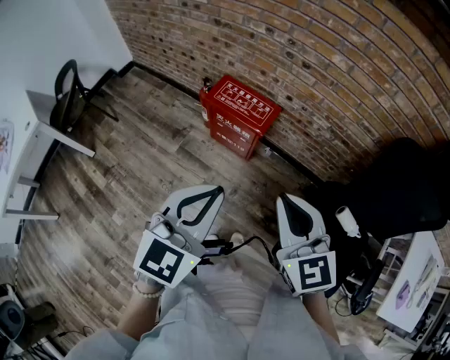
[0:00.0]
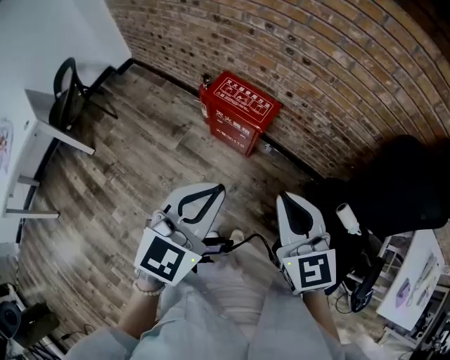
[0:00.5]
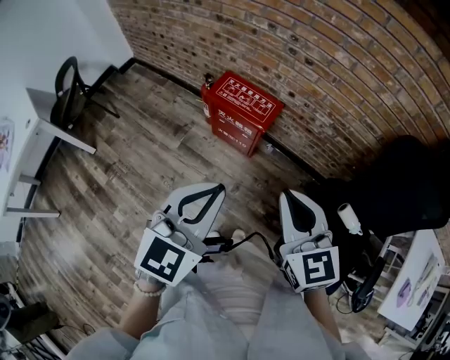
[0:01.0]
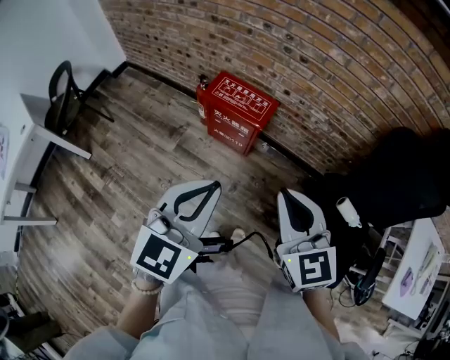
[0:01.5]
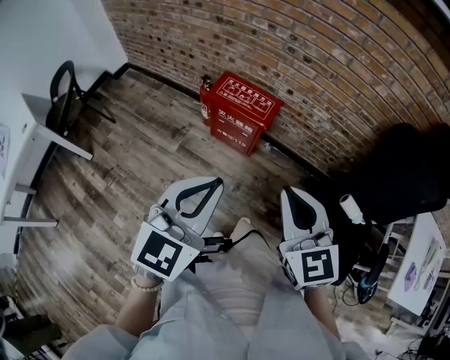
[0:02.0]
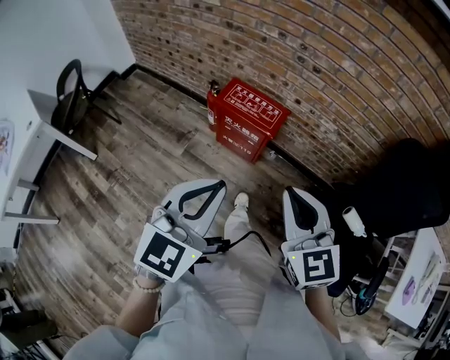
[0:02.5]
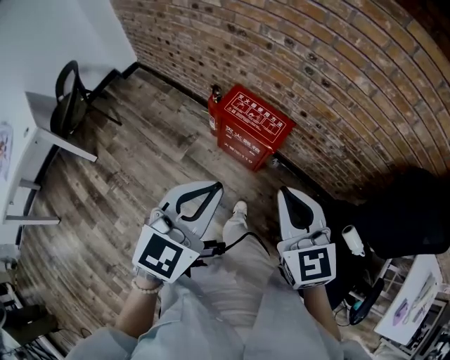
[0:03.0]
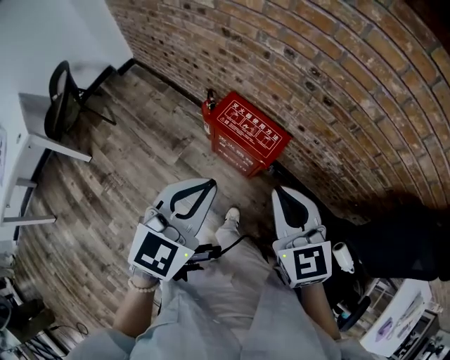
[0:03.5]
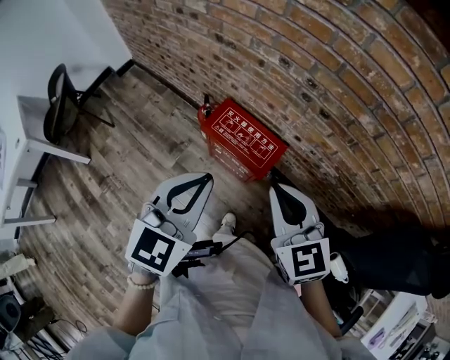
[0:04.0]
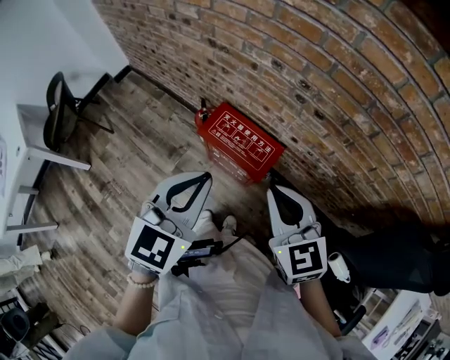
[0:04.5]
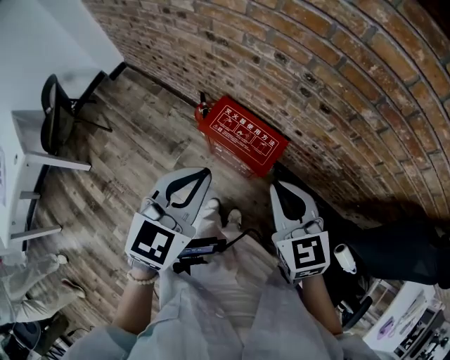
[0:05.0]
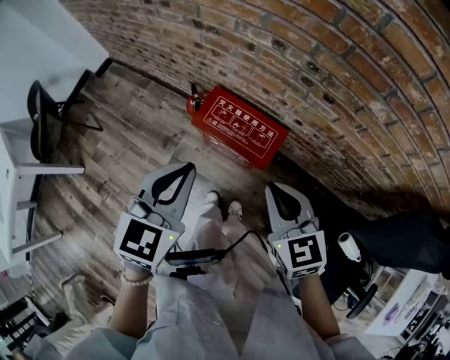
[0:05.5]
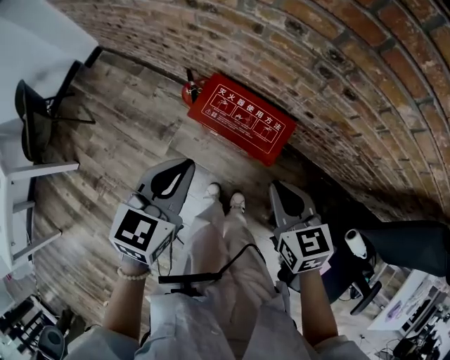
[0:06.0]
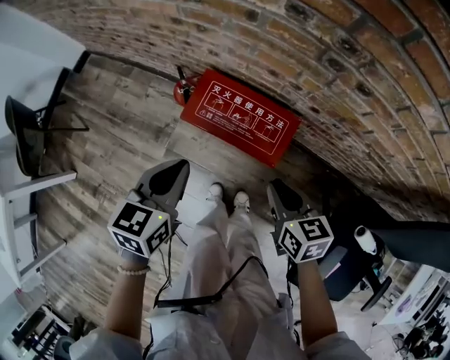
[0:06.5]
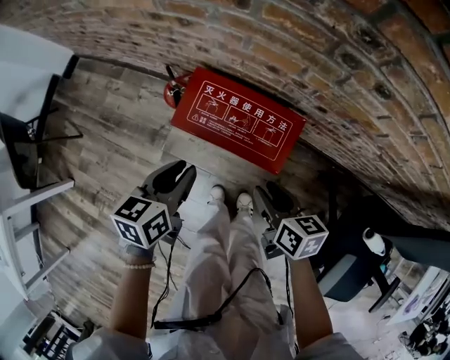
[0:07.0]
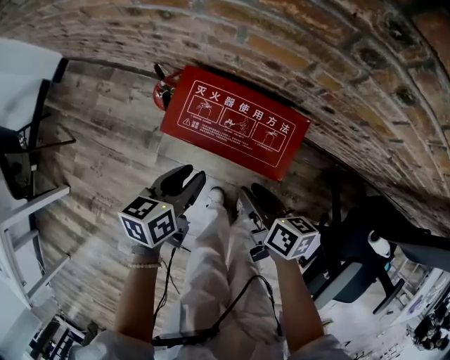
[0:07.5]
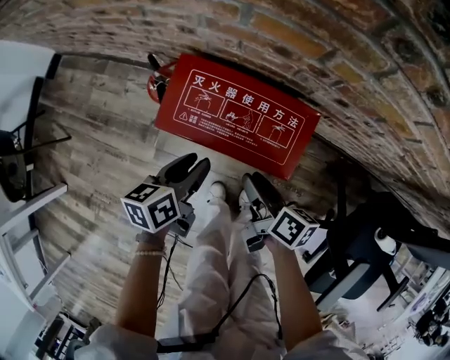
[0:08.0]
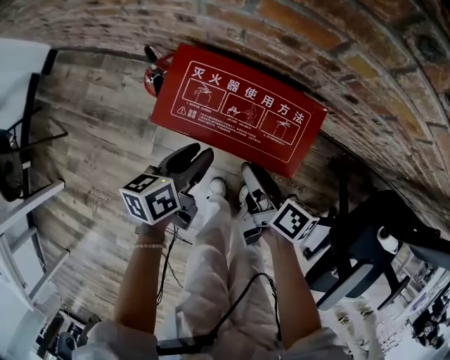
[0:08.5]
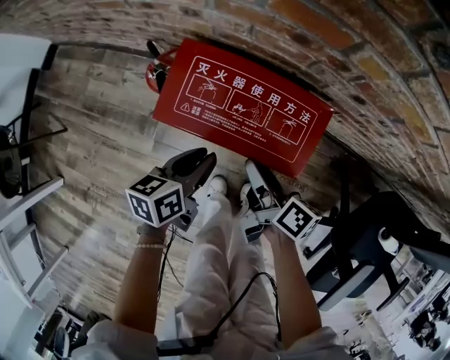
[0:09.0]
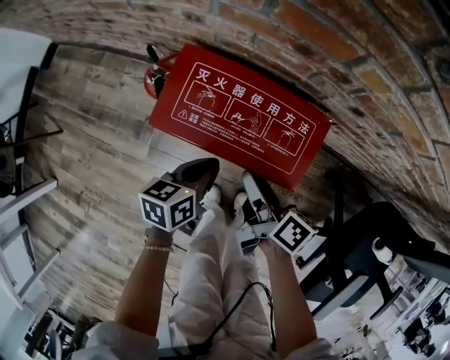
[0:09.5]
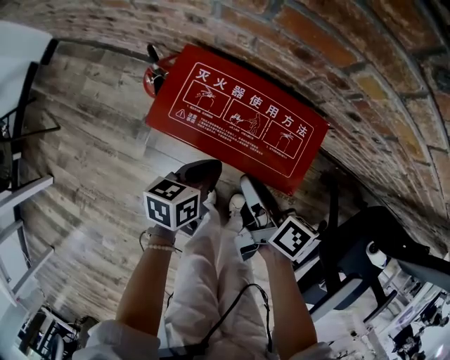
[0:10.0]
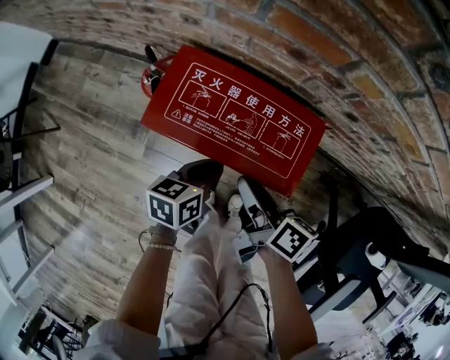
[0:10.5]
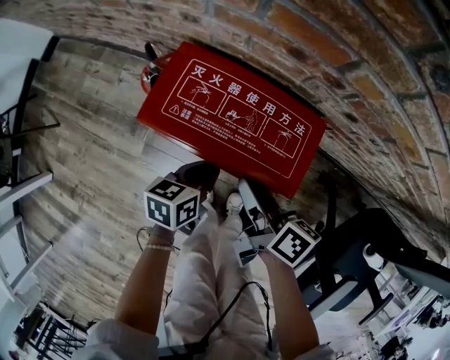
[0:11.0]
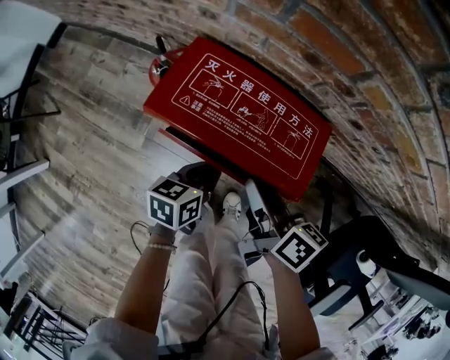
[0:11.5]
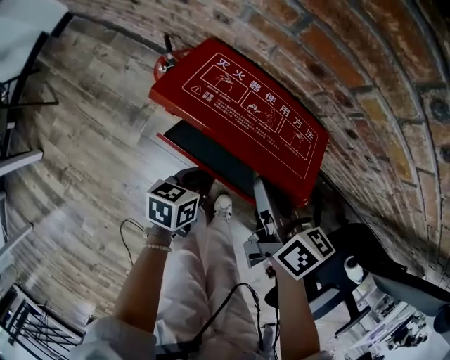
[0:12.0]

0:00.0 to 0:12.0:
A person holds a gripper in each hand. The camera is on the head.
0:00.0 to 0:02.0: The left gripper ends up approximately 5 cm from where it was.
0:02.0 to 0:04.0: The two grippers go approximately 30 cm forward.
0:04.0 to 0:06.0: The right gripper travels downward by about 15 cm, and swivels approximately 30 degrees, while the left gripper travels downward and forward by roughly 15 cm.
0:06.0 to 0:08.0: Both grippers travel together downward, approximately 30 cm. The left gripper changes its angle by approximately 40 degrees, and opens its fingers, while the right gripper rolls clockwise, seen from behind, by roughly 60 degrees, and opens its fingers.
0:08.0 to 0:10.0: The left gripper shifts about 5 cm downward, and closes its fingers.
0:10.0 to 0:12.0: The right gripper moves upward, about 5 cm, turns by some 20 degrees, and closes its fingers, while the left gripper goes about 5 cm backward.

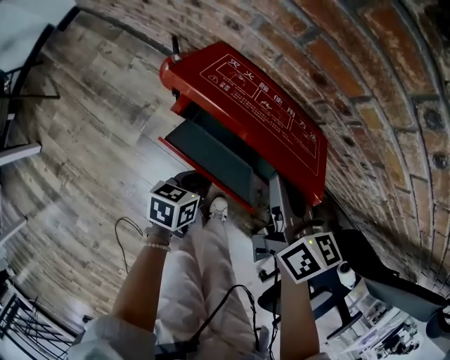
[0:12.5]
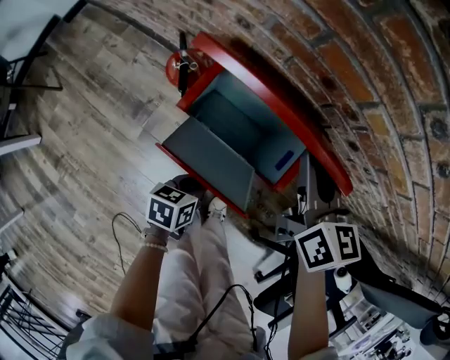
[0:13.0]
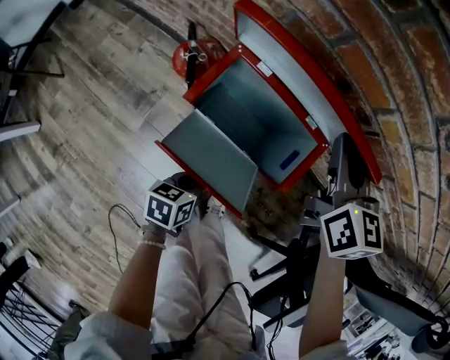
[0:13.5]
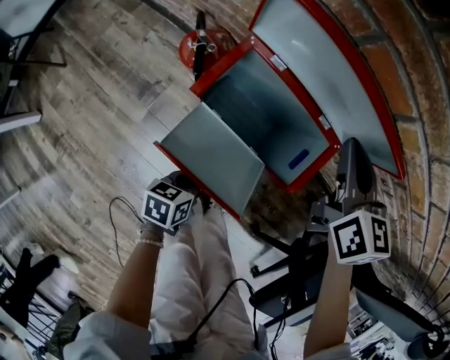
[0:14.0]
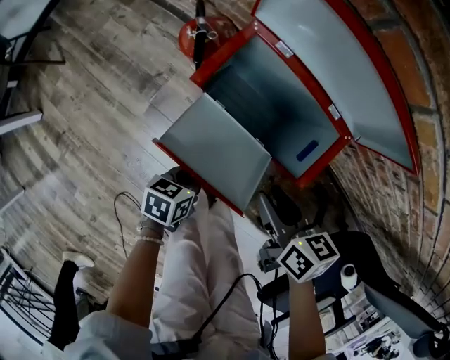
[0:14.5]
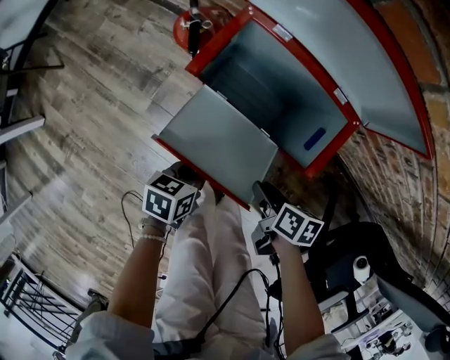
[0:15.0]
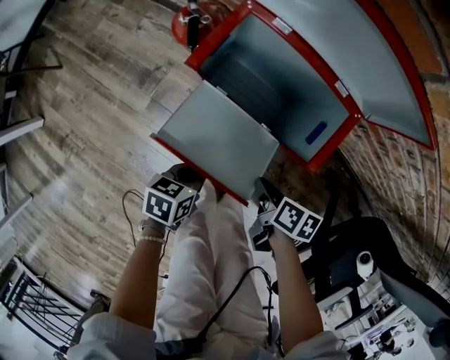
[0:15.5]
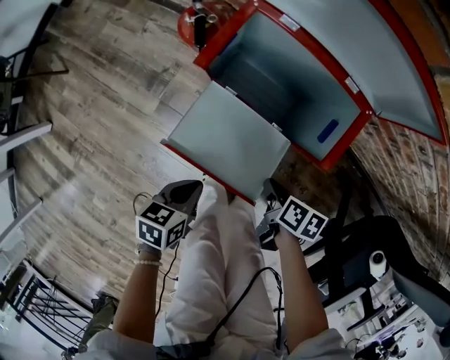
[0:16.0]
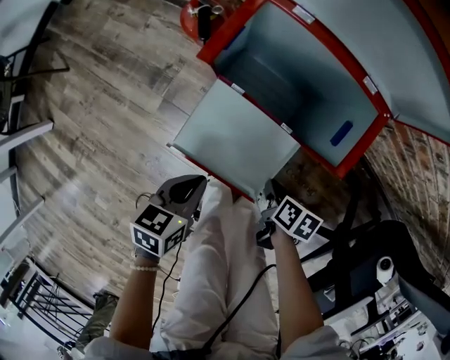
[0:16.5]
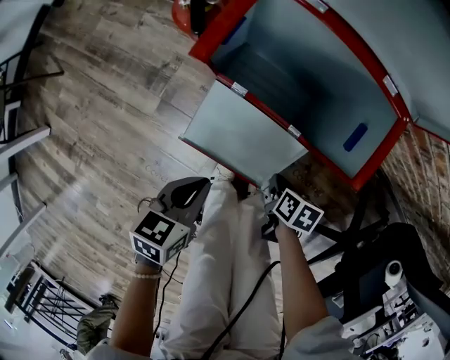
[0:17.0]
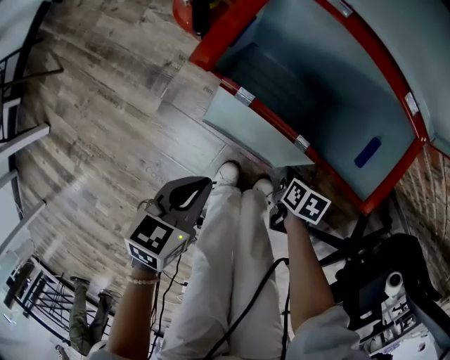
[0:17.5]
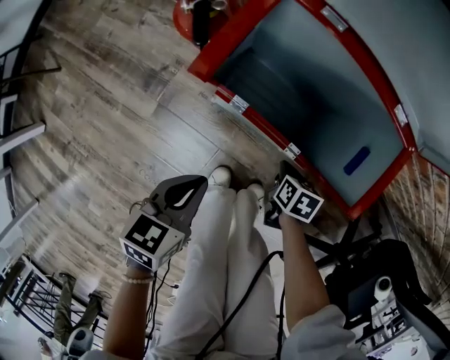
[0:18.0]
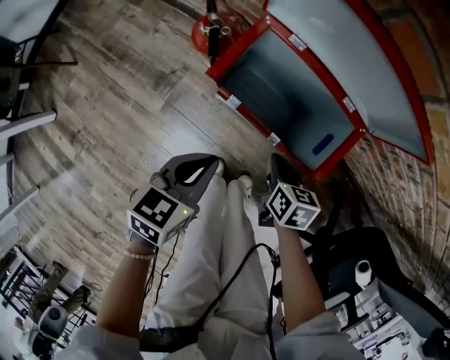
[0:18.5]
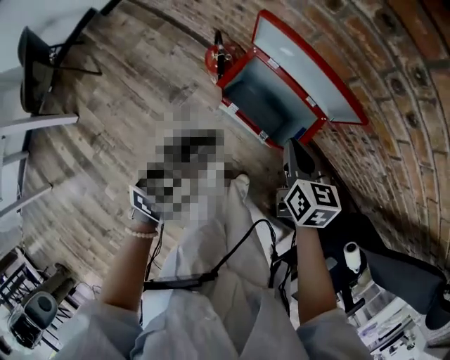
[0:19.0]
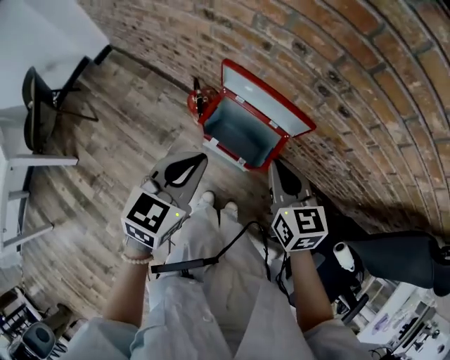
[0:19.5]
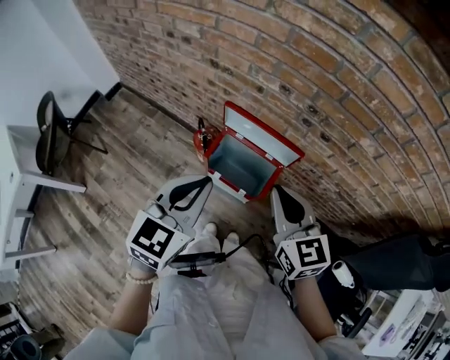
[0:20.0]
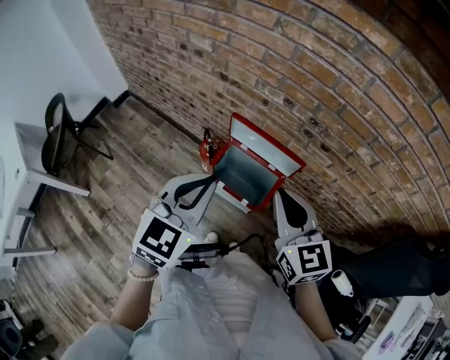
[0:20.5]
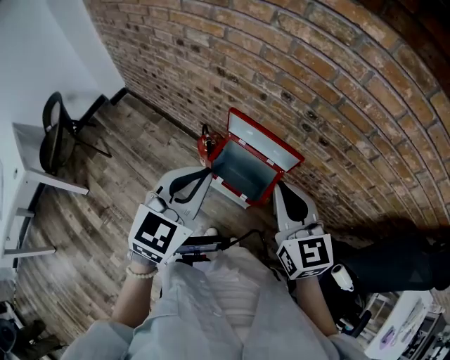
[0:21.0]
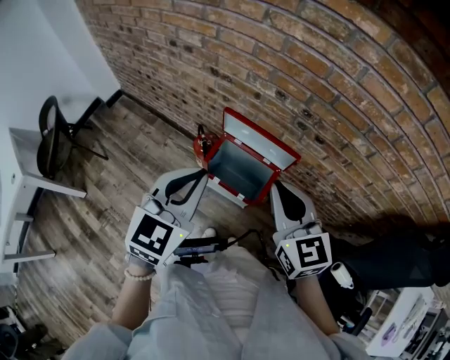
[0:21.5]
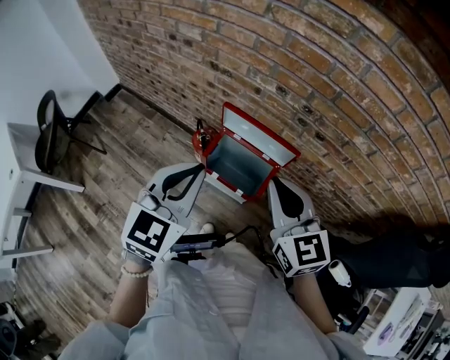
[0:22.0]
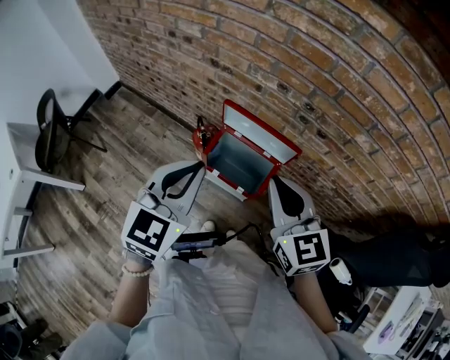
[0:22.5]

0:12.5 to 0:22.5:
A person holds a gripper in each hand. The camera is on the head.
0:12.5 to 0:14.5: The left gripper is displaced backward and downward by some 10 cm. The right gripper shifts some 15 cm downward and backward, swivels roughly 30 degrees, and opens its fingers.
0:14.5 to 0:16.5: The left gripper shifts by roughly 5 cm. The right gripper is displaced downward and backward by approximately 20 cm, swivels approximately 40 degrees, and closes its fingers.
0:16.5 to 0:18.5: The right gripper moves forward and upward, some 15 cm, and rotates approximately 30 degrees; the left gripper goes some 15 cm upward and forward.
0:18.5 to 0:20.5: The two grippers go approximately 50 cm upward. The left gripper swivels approximately 40 degrees. Meanwhile the right gripper angles its fingers upward, by about 40 degrees.
0:20.5 to 0:22.5: Neither gripper changes place.

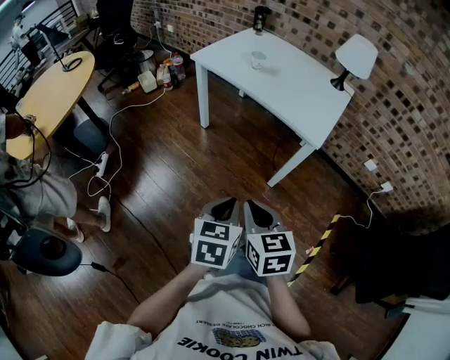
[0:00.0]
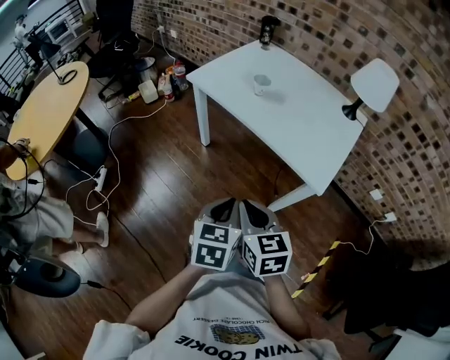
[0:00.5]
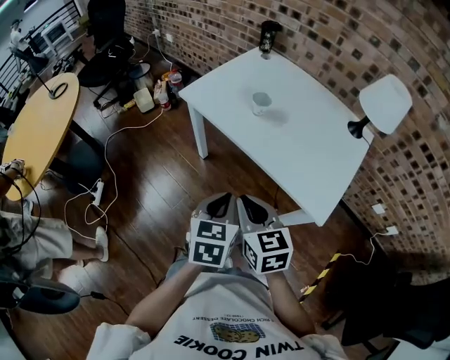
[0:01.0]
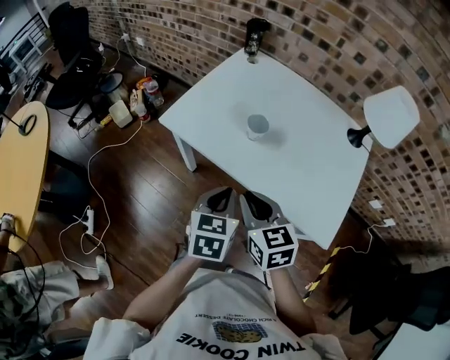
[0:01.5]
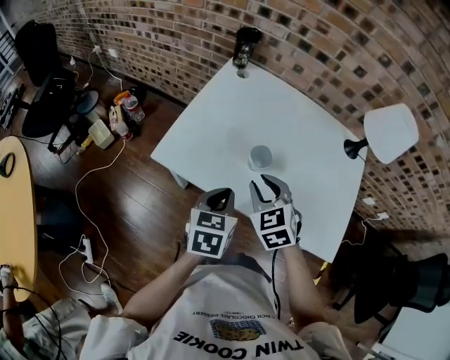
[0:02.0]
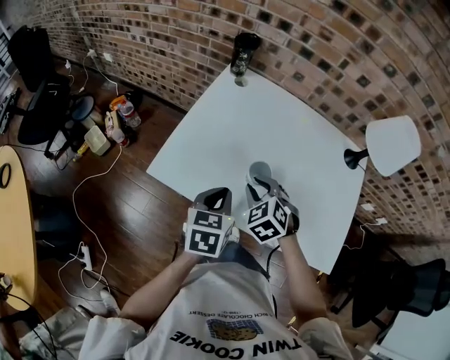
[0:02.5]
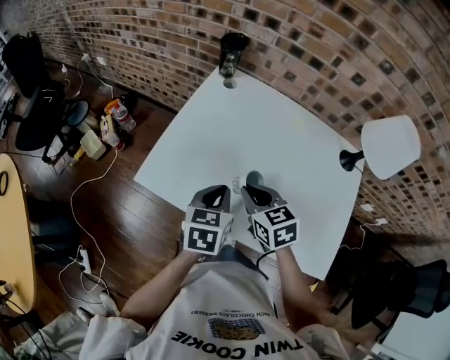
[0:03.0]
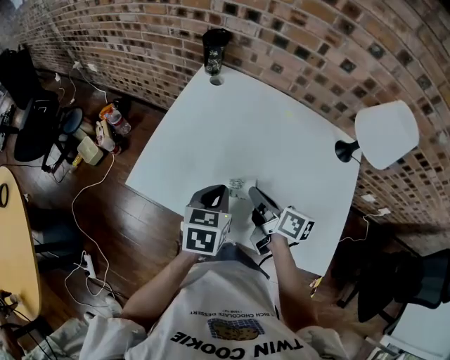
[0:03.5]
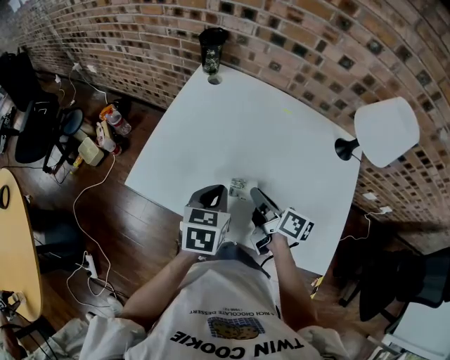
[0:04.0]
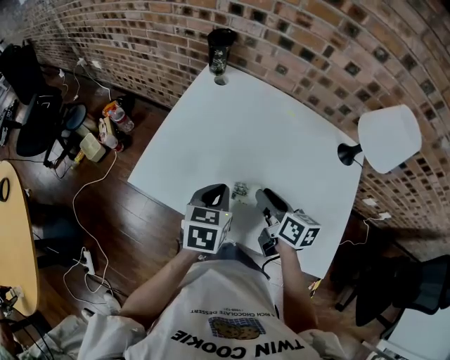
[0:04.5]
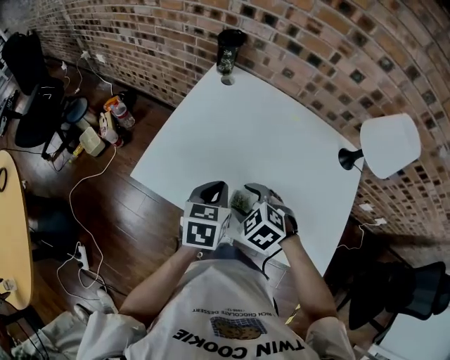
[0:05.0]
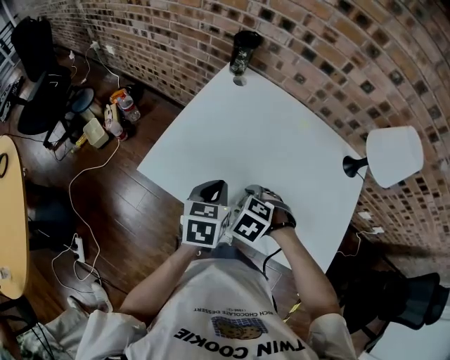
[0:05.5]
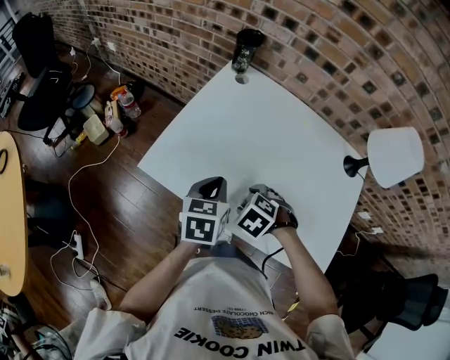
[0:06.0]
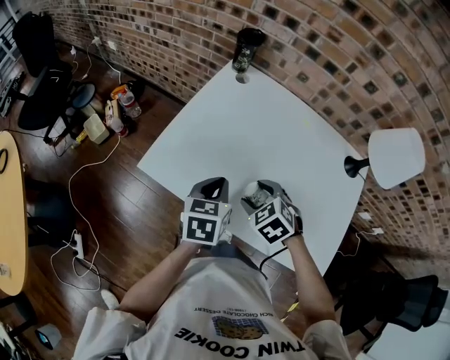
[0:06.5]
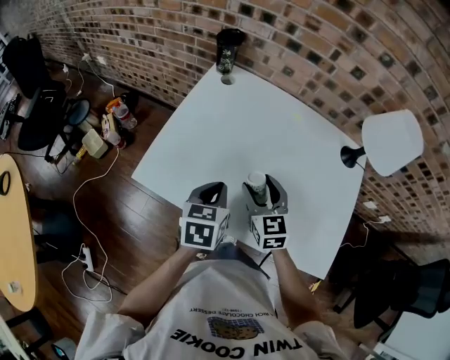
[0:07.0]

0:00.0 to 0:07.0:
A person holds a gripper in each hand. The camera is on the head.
0:00.0 to 0:02.0: The pair of grippers is taken forward, approximately 60 cm. The right gripper changes its angle by some 30 degrees.
0:02.0 to 0:03.5: The right gripper travels to the right and forward by about 10 cm, and rolls clockwise, seen from behind, by about 70 degrees, while the left gripper goes approximately 10 cm forward and to the right.
0:03.5 to 0:05.0: The right gripper heads to the left, covering some 5 cm, twists roughly 80 degrees counterclockwise, seen from behind, and opens its fingers.
0:05.0 to 0:07.0: The right gripper ends up roughly 10 cm from where it was, and tilts its fingers roughly 40 degrees upward.
